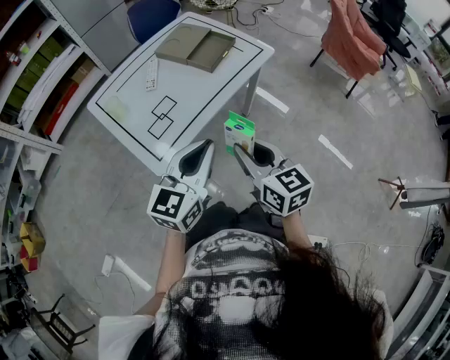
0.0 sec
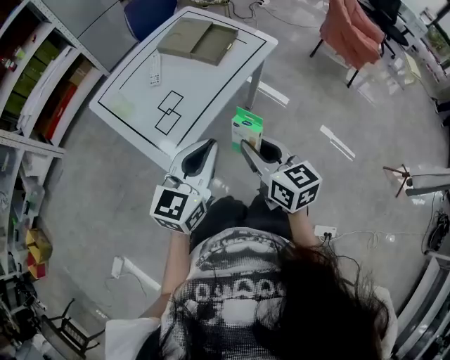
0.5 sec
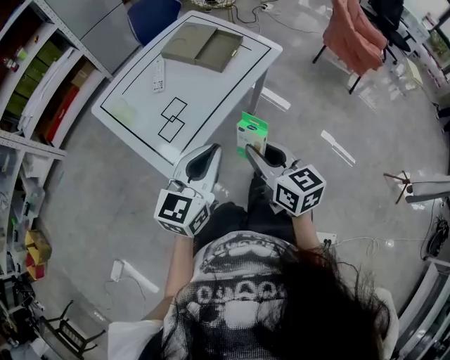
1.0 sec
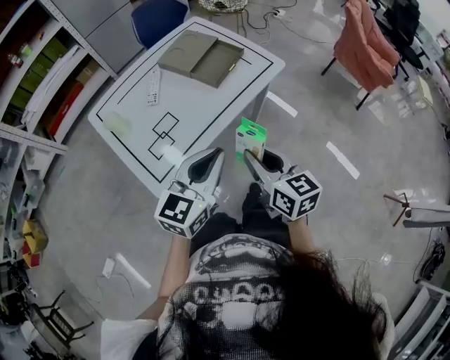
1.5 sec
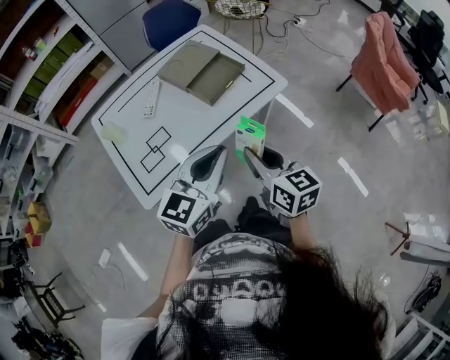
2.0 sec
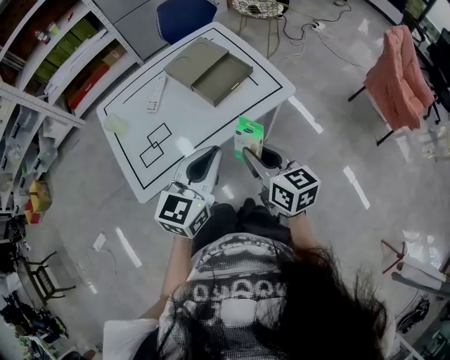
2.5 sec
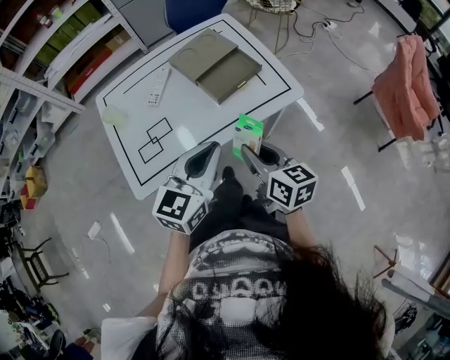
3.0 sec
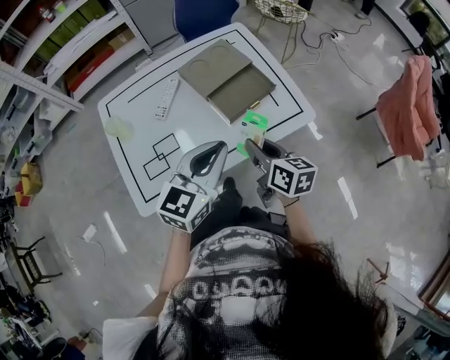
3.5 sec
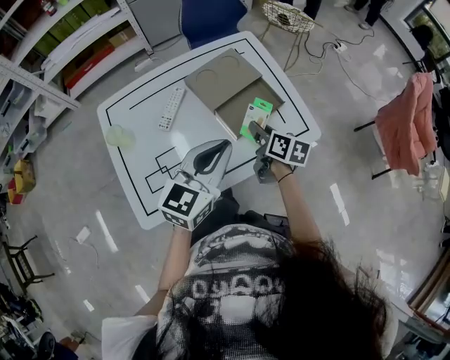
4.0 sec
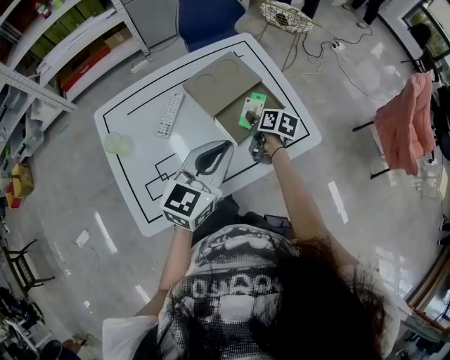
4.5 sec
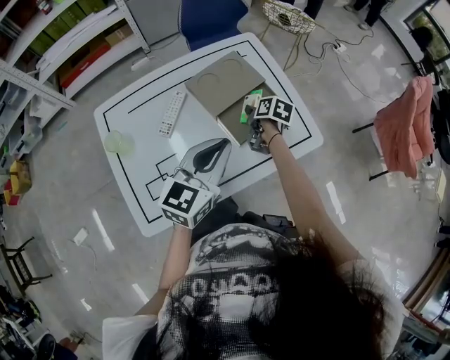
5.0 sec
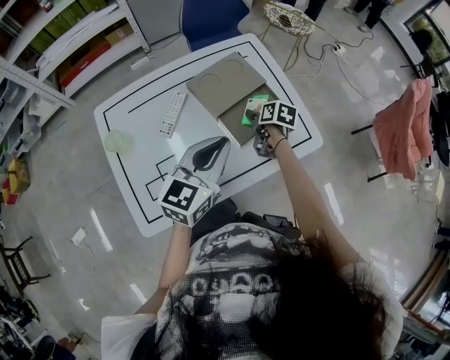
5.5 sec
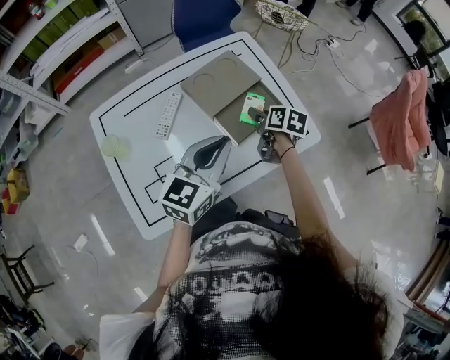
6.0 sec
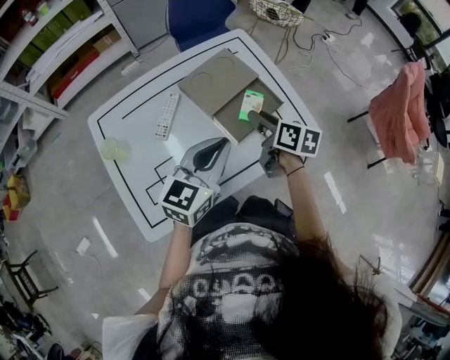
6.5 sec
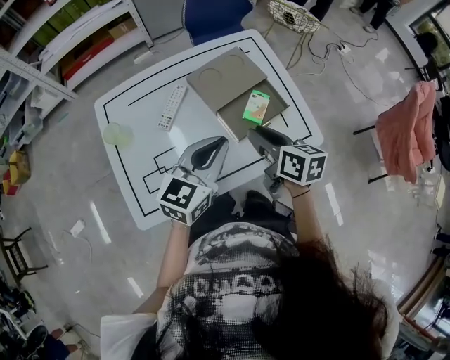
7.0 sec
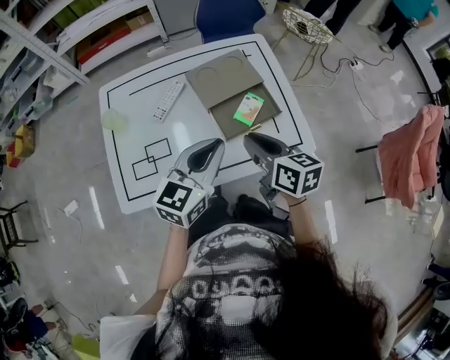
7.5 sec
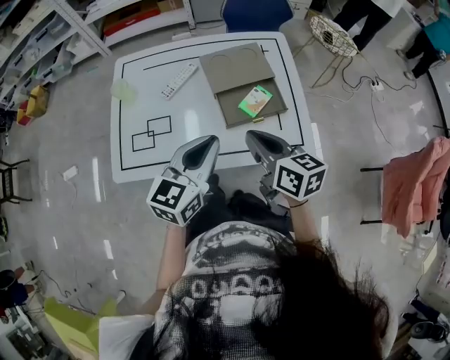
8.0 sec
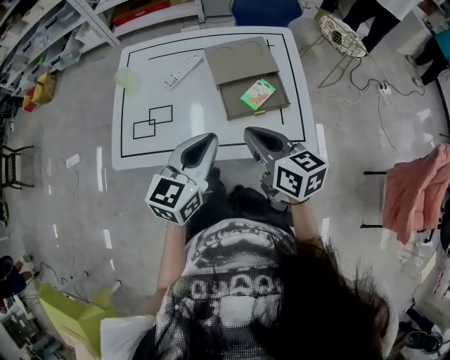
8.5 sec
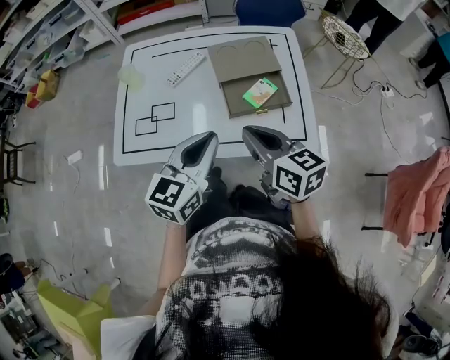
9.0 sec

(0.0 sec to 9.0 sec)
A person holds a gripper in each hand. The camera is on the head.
0.0 sec - 2.0 sec: Both grippers travel together forward and to the right, about 25 cm.
2.0 sec - 4.5 sec: The left gripper travels forward by about 25 cm, while the right gripper moves forward and downward, approximately 50 cm, and changes its angle by approximately 40 degrees.
4.5 sec - 7.0 sec: The right gripper is displaced upward and backward by some 15 cm, turns by roughly 30 degrees, and opens, then closes once more.
7.0 sec - 9.0 sec: The right gripper ends up about 10 cm from where it was, turns by some 30 degrees, and closes its fingers. The left gripper moves about 10 cm, and changes its angle by approximately 30 degrees.

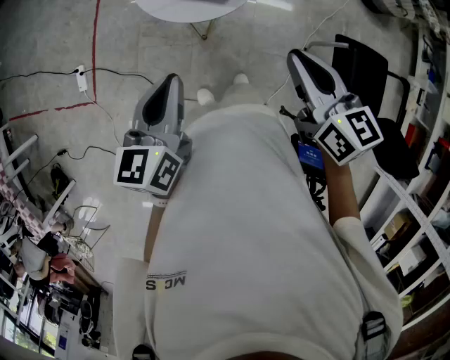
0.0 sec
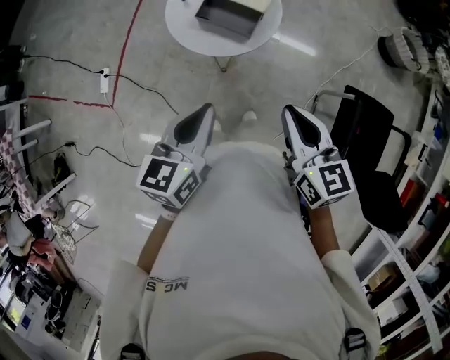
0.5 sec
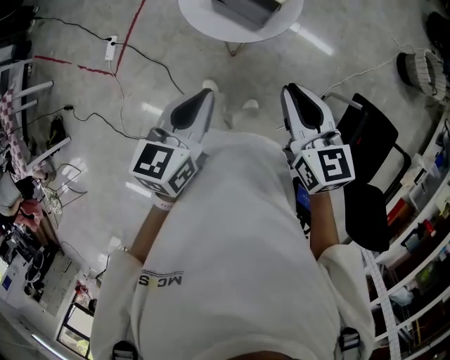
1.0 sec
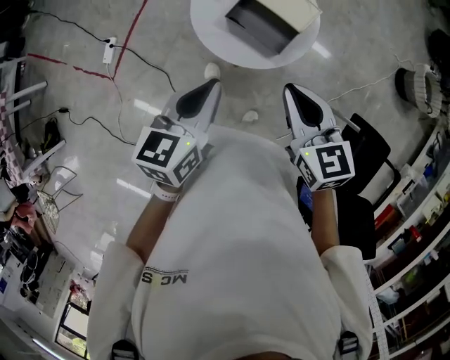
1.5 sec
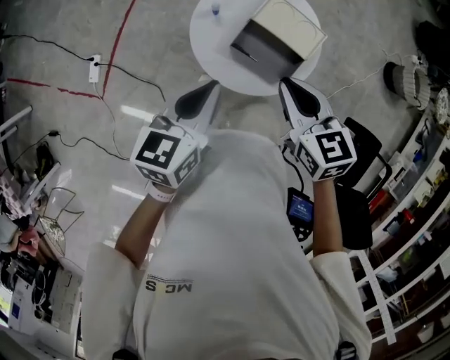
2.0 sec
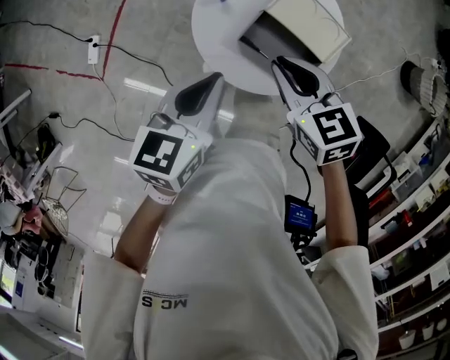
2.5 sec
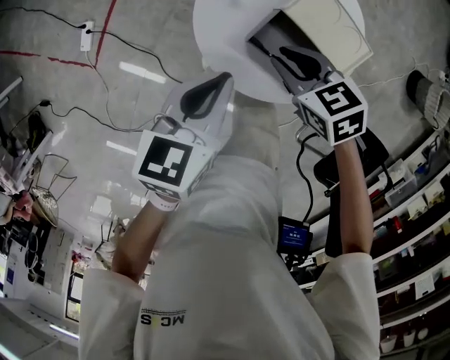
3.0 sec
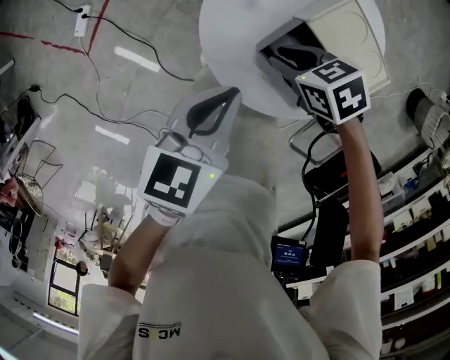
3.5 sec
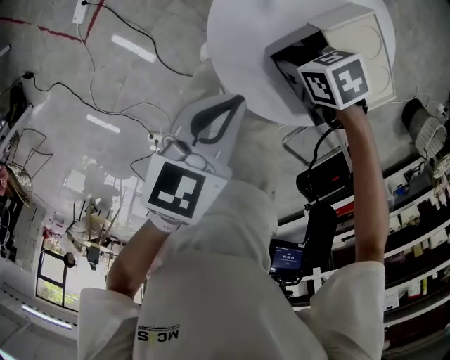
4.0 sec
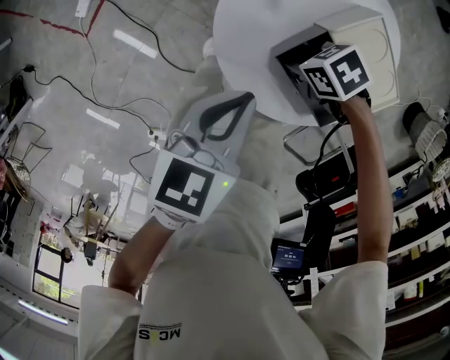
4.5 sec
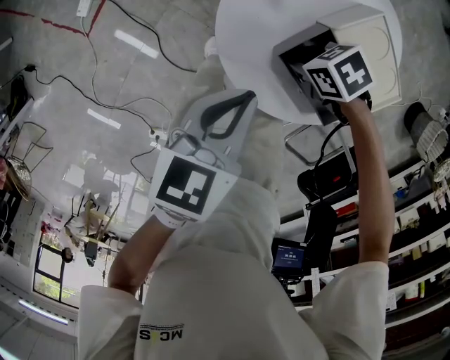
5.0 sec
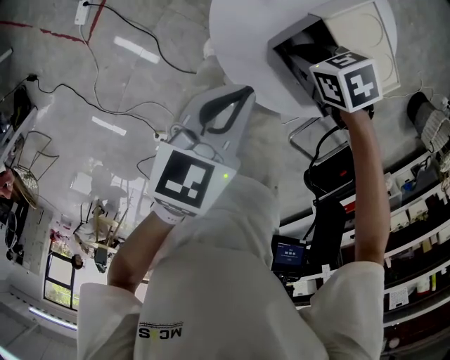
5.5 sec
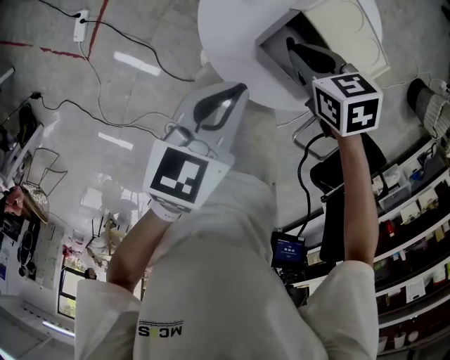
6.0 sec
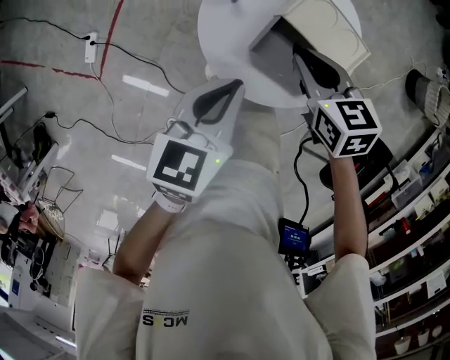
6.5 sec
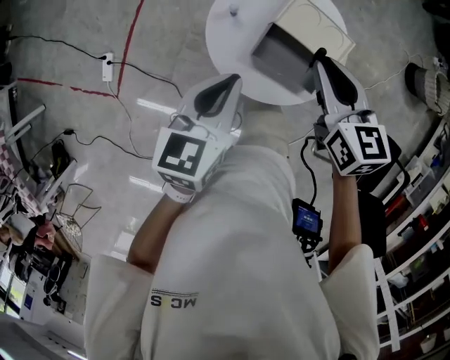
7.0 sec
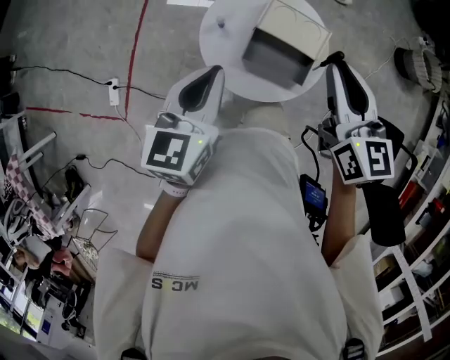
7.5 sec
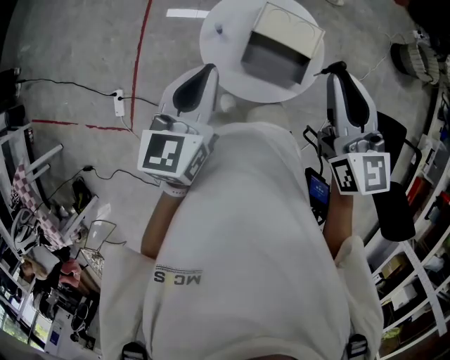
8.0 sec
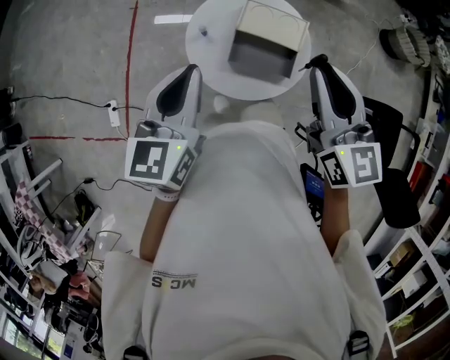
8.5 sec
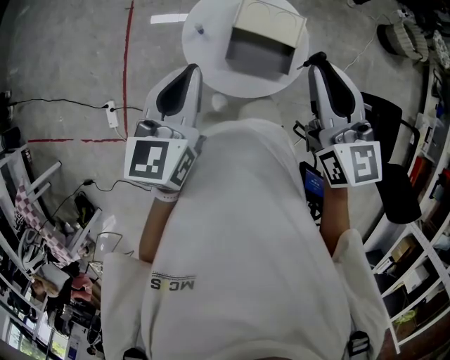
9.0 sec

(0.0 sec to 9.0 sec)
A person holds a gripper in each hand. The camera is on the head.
0.0 sec - 2.0 sec: The left gripper moves forward, some 35 cm; the right gripper goes approximately 40 cm forward and to the left, and rotates approximately 30 degrees.
2.0 sec - 4.5 sec: The right gripper travels downward by roughly 40 cm, and swivels approximately 60 degrees. Meanwhile the left gripper goes approximately 25 cm downward.
4.5 sec - 7.0 sec: The left gripper shifts roughly 20 cm upward. Meanwhile the right gripper goes some 35 cm upward, and turns by roughly 70 degrees.
7.0 sec - 9.0 sec: The right gripper shifts some 20 cm upward and backward, and swivels roughly 30 degrees, while the left gripper shifts roughly 15 cm upward.

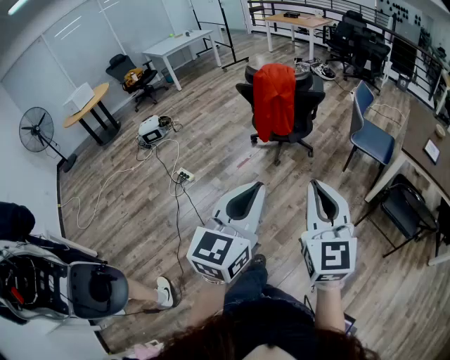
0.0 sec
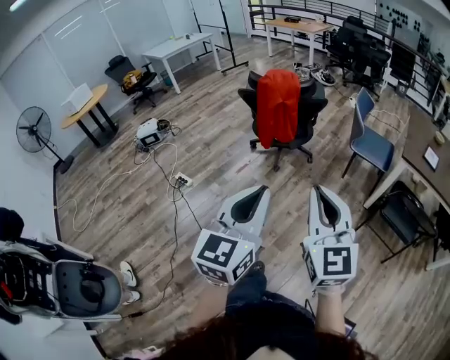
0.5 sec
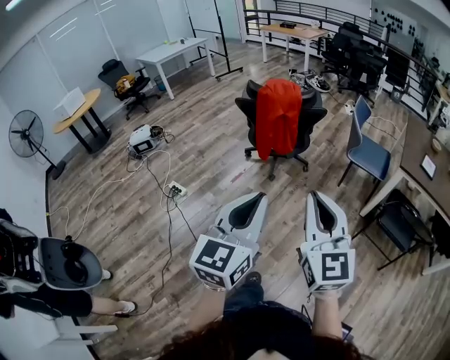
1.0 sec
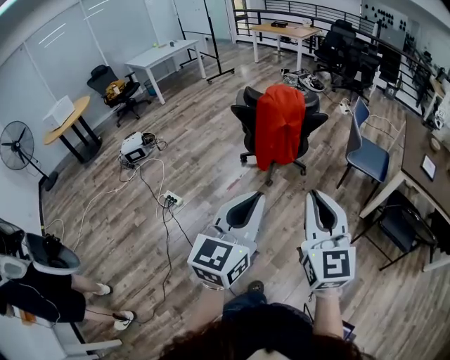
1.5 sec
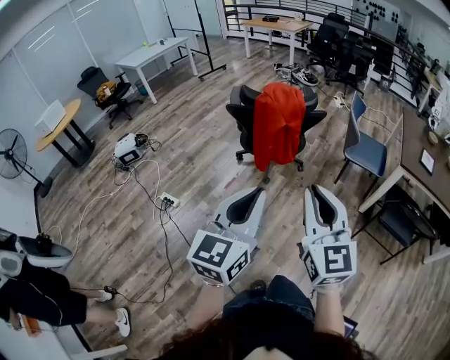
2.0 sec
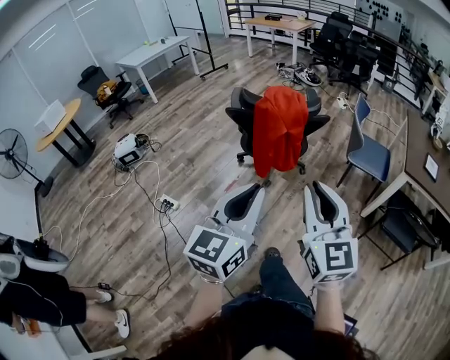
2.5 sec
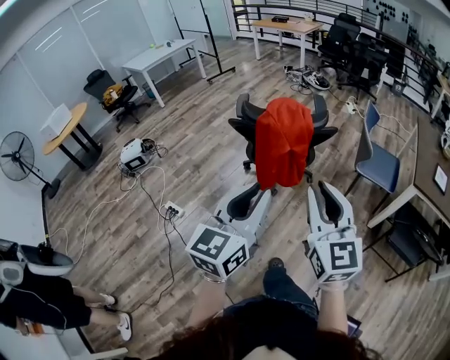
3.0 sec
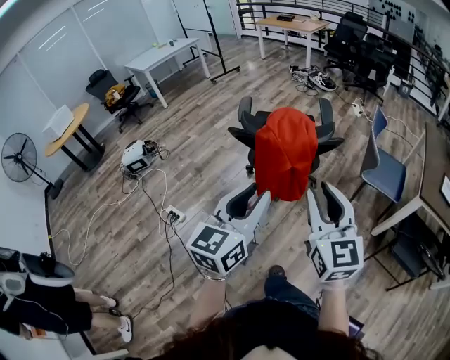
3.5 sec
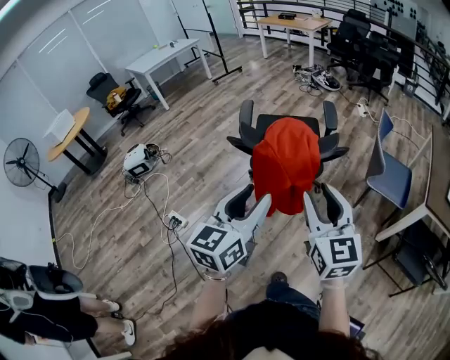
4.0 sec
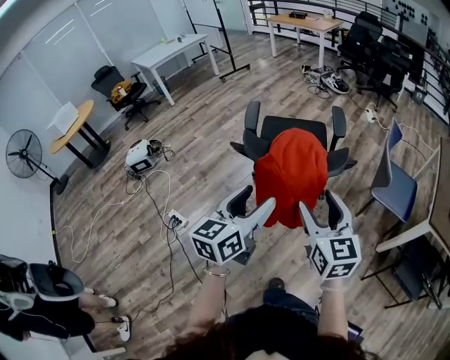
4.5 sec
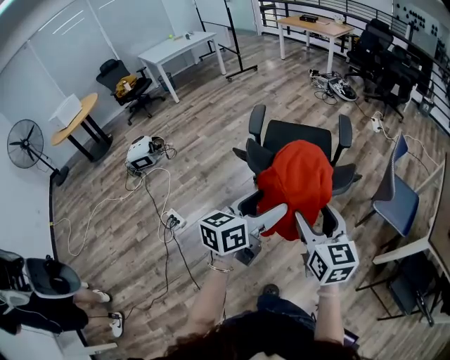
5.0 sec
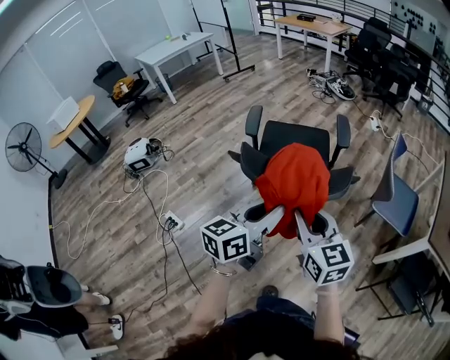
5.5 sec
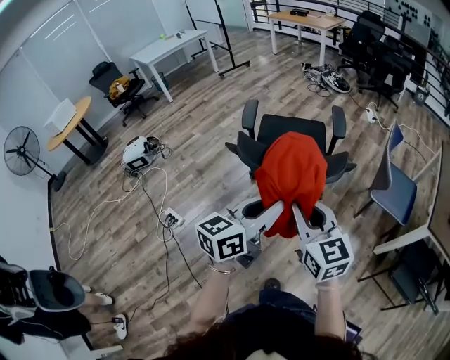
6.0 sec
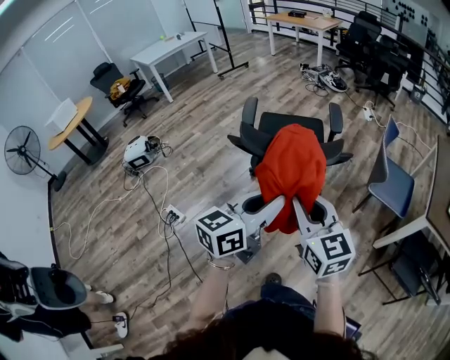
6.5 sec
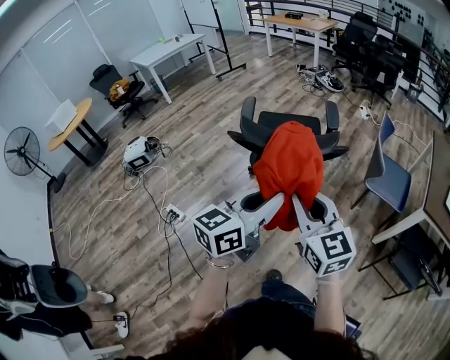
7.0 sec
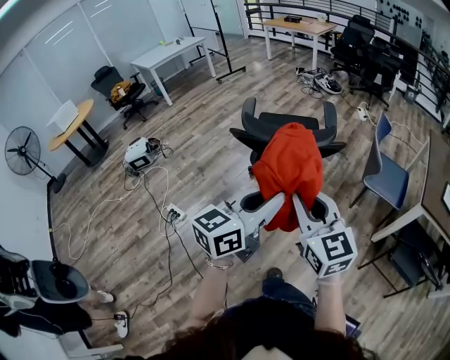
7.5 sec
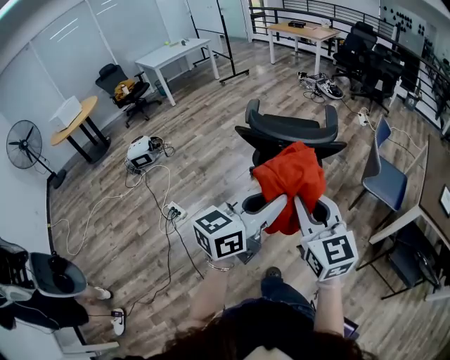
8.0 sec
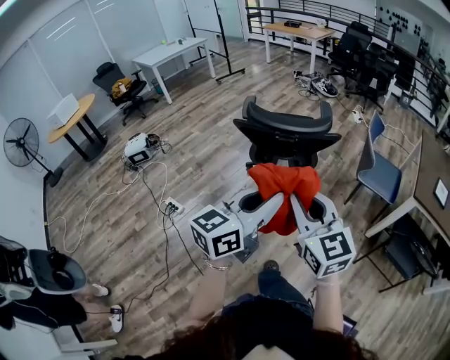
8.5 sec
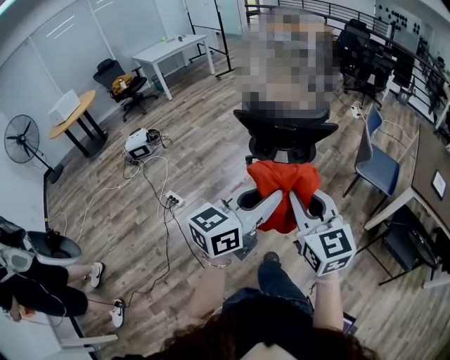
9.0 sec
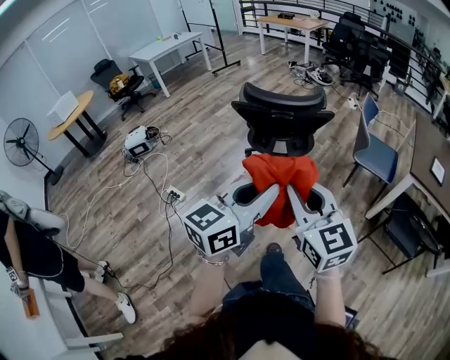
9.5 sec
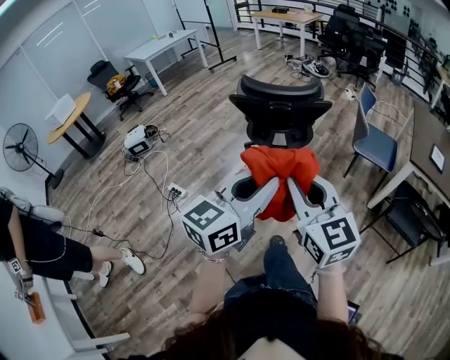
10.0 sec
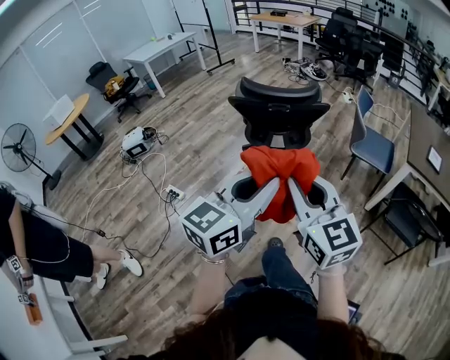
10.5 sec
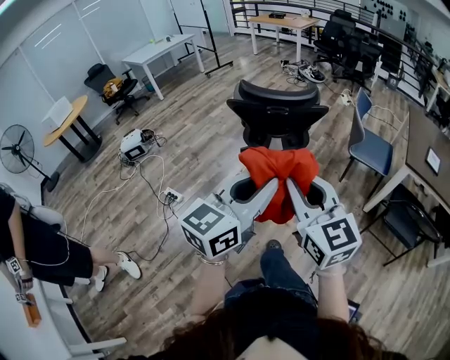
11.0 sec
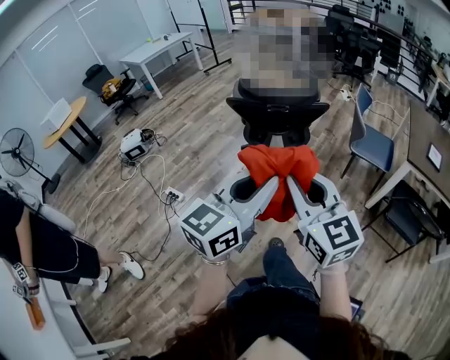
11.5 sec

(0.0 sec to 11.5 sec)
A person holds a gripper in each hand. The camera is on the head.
0.0 sec - 2.0 sec: The two grippers go some 20 cm forward and to the left.
2.0 sec - 4.0 sec: The grippers both shift forward by about 25 cm. The left gripper opens, while the right gripper opens its fingers.
4.0 sec - 6.0 sec: The two grippers go about 10 cm forward and downward. The left gripper opens, then closes once more. The right gripper closes up.
6.0 sec - 7.5 sec: The grippers both shift backward and upward by about 15 cm.
7.5 sec - 9.5 sec: The two grippers go some 20 cm backward.
9.5 sec - 11.5 sec: The grippers make only small movements.
